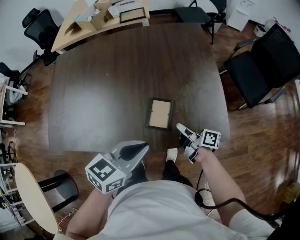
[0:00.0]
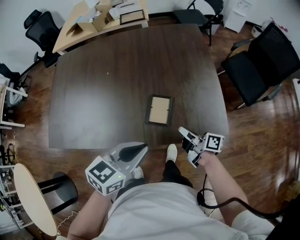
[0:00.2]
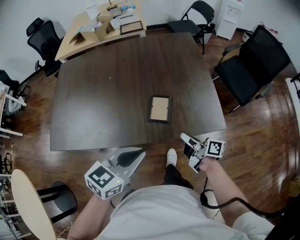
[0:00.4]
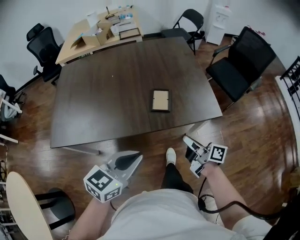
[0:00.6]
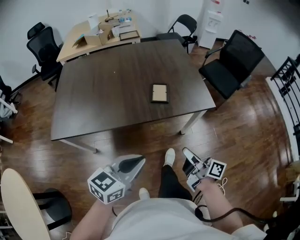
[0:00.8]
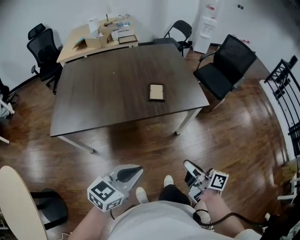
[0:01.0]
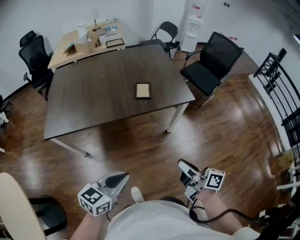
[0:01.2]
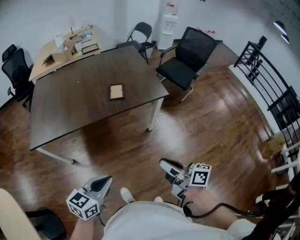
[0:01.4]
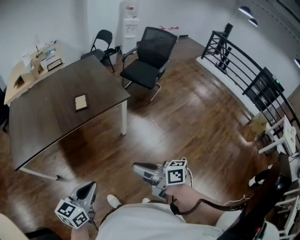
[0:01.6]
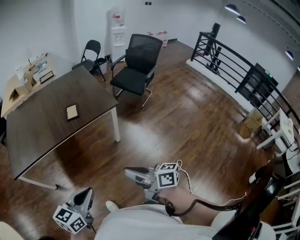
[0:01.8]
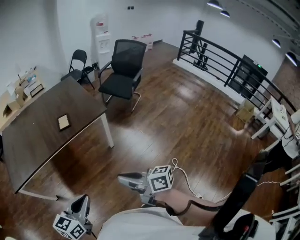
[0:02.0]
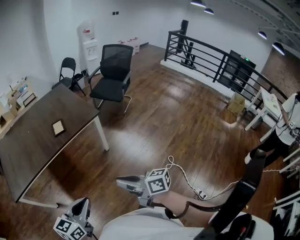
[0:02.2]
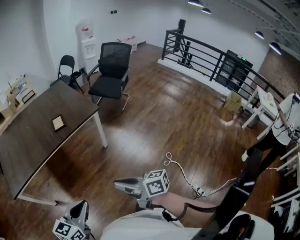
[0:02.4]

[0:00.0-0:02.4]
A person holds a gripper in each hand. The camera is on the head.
0:00.0 to 0:01.2: Both grippers travel together backward, approximately 40 cm. The right gripper changes its angle by about 30 degrees.
0:01.2 to 0:02.4: The left gripper goes about 10 cm to the right and backward, while the right gripper moves backward, about 15 cm.

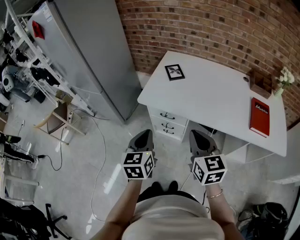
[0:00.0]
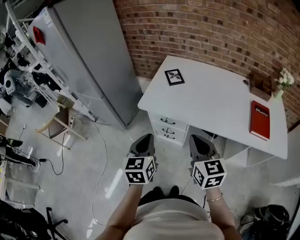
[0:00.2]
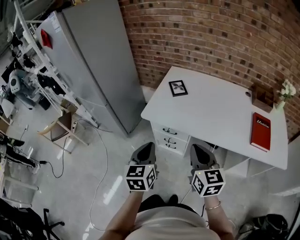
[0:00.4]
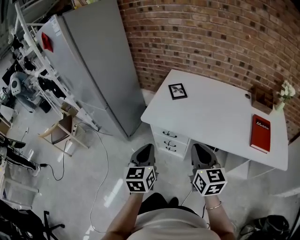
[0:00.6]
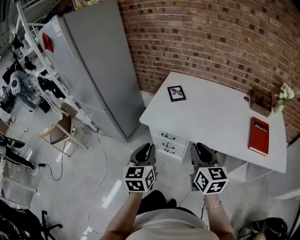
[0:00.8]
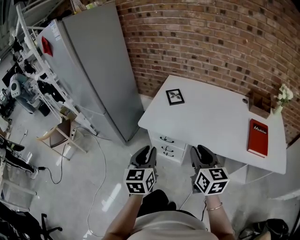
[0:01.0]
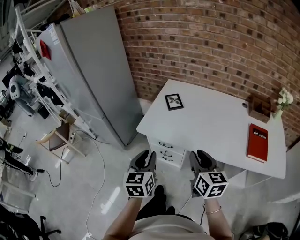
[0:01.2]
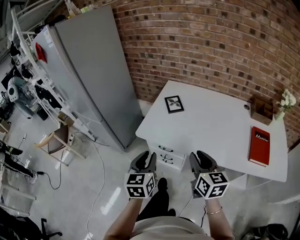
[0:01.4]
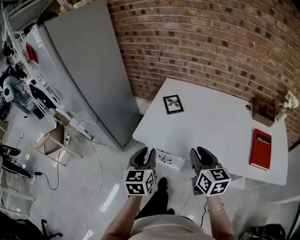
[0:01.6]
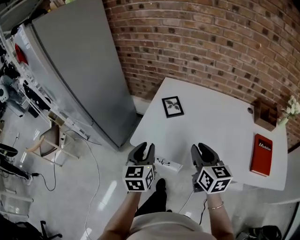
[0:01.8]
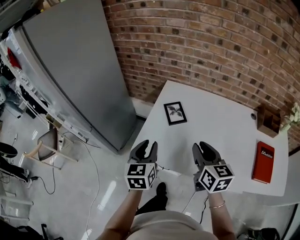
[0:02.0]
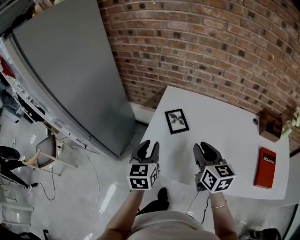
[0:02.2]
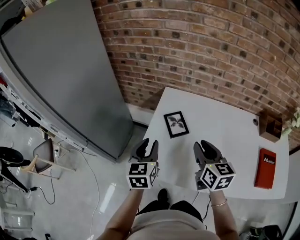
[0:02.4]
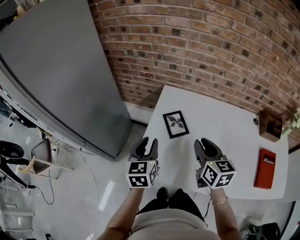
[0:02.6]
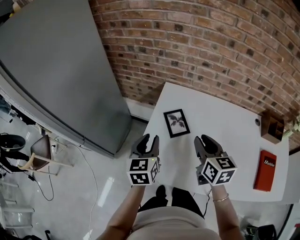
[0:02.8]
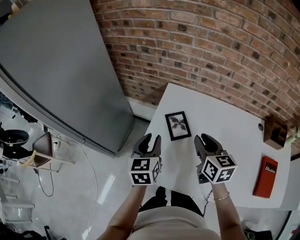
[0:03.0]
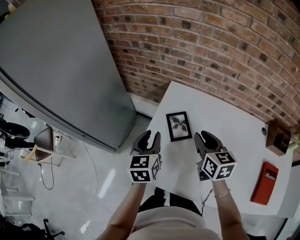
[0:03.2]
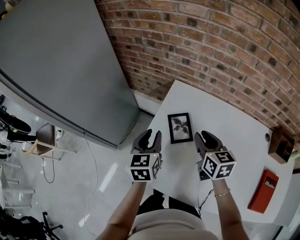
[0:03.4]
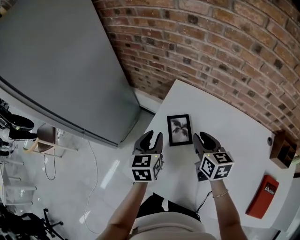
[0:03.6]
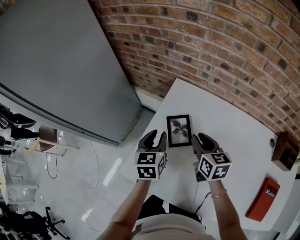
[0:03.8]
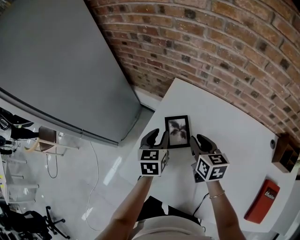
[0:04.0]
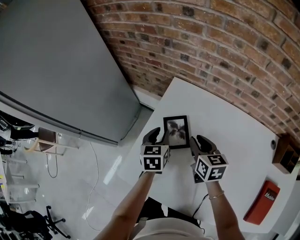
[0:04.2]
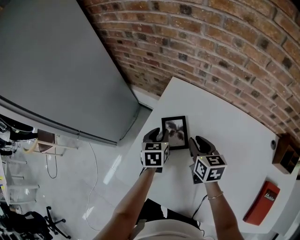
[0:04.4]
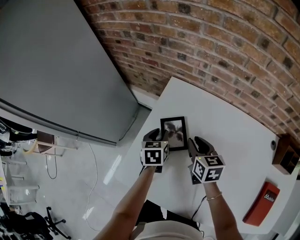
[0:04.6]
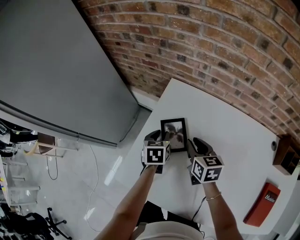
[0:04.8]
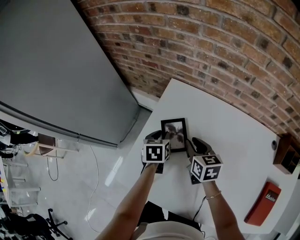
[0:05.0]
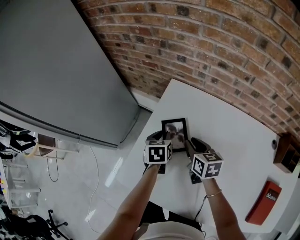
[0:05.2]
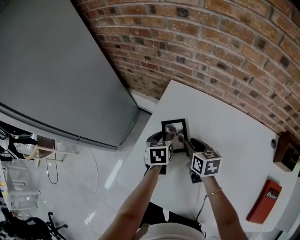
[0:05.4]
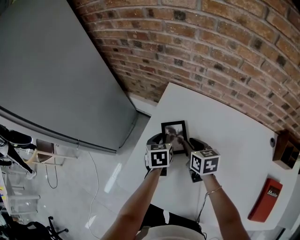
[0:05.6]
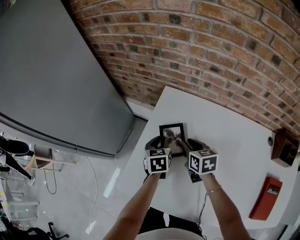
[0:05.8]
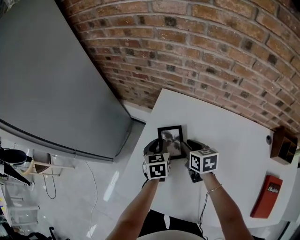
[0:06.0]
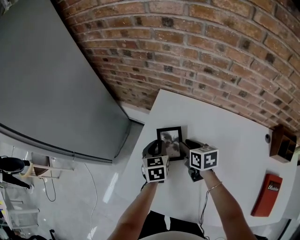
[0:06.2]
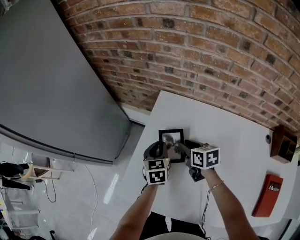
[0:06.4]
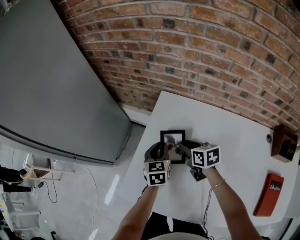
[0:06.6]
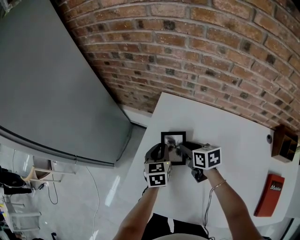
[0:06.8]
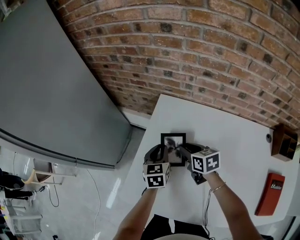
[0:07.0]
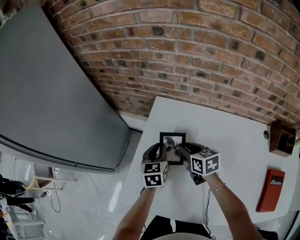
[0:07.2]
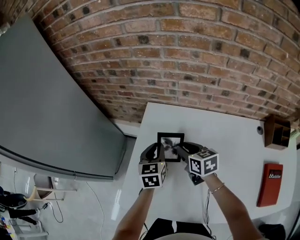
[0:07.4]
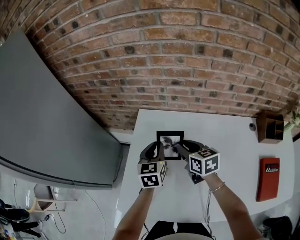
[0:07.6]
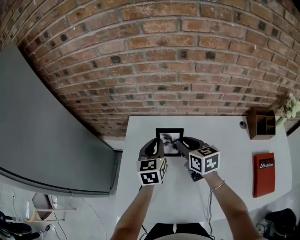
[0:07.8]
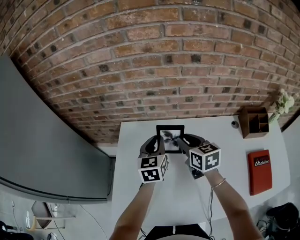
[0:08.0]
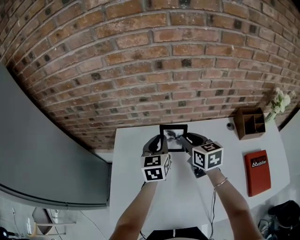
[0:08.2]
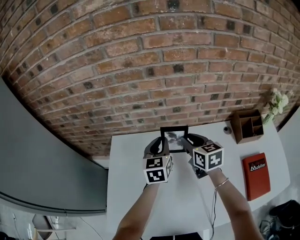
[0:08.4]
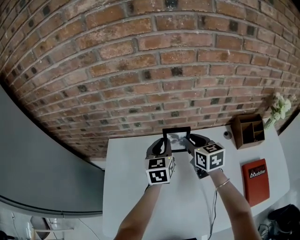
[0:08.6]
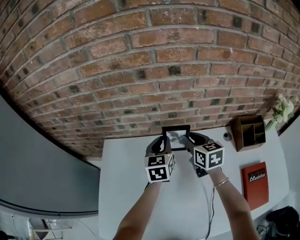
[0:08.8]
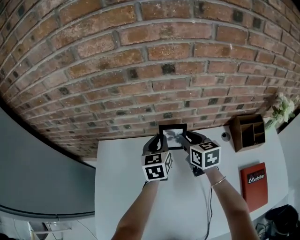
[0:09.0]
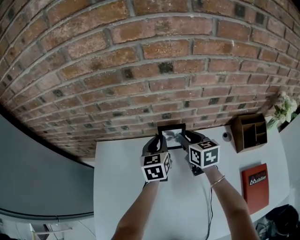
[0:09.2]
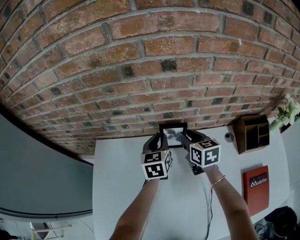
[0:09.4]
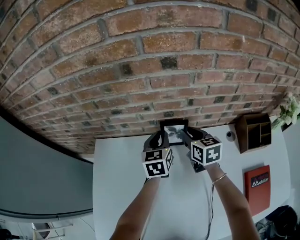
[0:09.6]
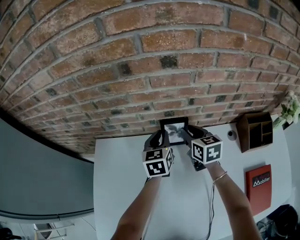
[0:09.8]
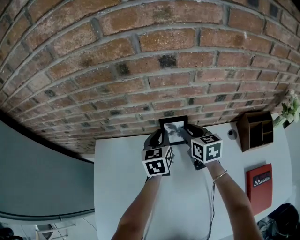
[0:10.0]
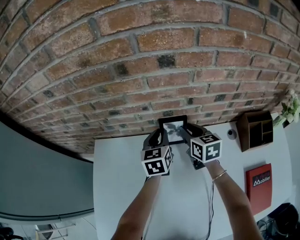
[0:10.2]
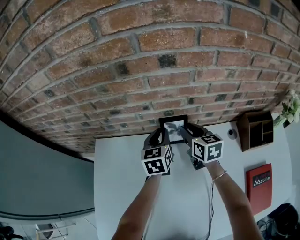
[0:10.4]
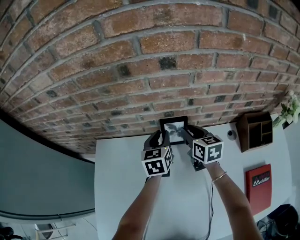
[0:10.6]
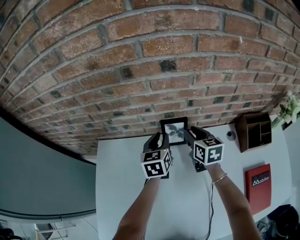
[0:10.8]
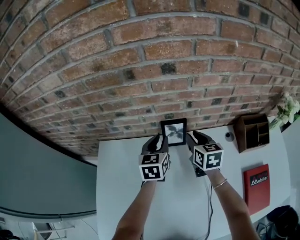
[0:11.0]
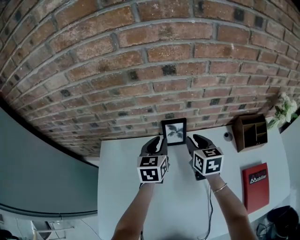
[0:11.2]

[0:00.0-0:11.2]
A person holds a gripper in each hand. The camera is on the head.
0:00.0 to 0:01.6: The right gripper heads forward and to the right, covering about 15 cm, and opens; the left gripper is displaced forward by roughly 10 cm, and opens.
0:01.6 to 0:03.2: Both grippers move forward, approximately 30 cm.
0:03.2 to 0:04.8: The right gripper goes some 15 cm downward and forward. The left gripper moves downward, forward and to the right, roughly 20 cm, and changes its angle by roughly 30 degrees.
0:04.8 to 0:06.4: The grippers make only small movements.
0:06.4 to 0:08.0: The left gripper ends up approximately 20 cm from where it was, and turns by roughly 30 degrees. Meanwhile the right gripper ends up roughly 20 cm from where it was, and swivels about 30 degrees.
0:08.0 to 0:09.6: The right gripper is displaced forward, to the right and downward by roughly 20 cm. Meanwhile the left gripper moves to the right, forward and downward, about 20 cm.
0:09.6 to 0:11.2: The right gripper travels backward by some 5 cm. The left gripper moves roughly 5 cm.

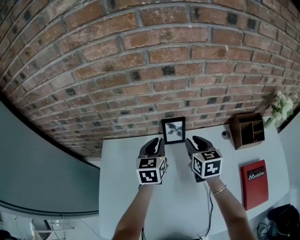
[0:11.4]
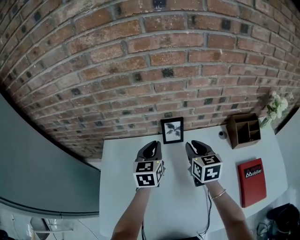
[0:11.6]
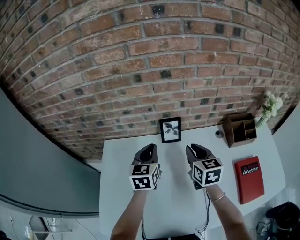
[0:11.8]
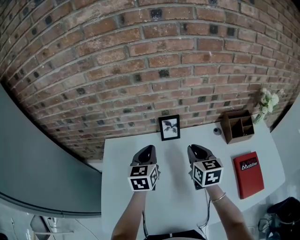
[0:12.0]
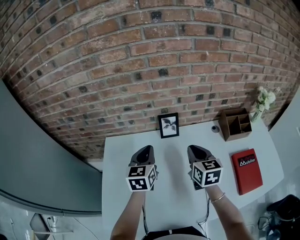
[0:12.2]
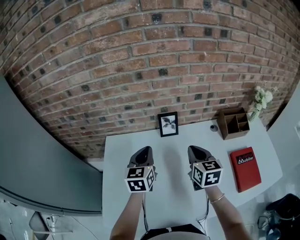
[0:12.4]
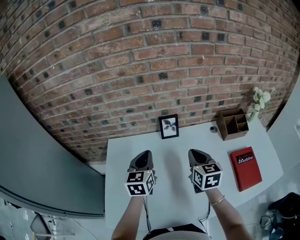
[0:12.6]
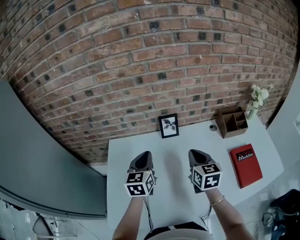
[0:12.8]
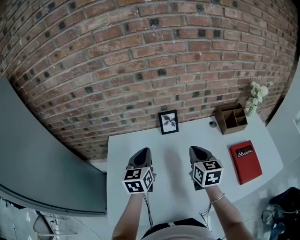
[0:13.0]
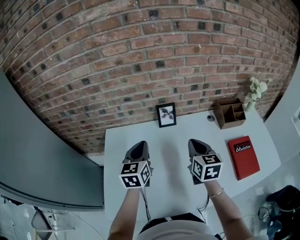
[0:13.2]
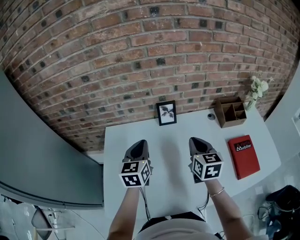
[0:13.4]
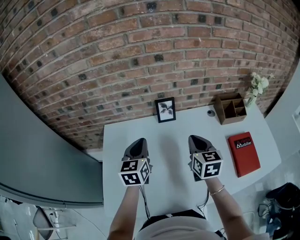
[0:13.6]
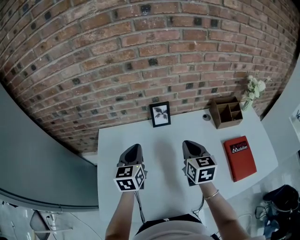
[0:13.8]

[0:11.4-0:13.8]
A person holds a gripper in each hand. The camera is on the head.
0:11.4 to 0:12.6: Both grippers travel together backward, about 15 cm. The right gripper closes its fingers.
0:12.6 to 0:13.8: The grippers move only a little.

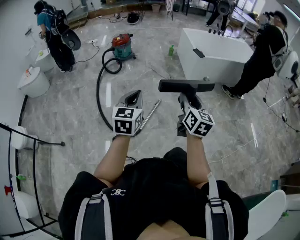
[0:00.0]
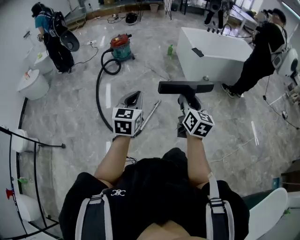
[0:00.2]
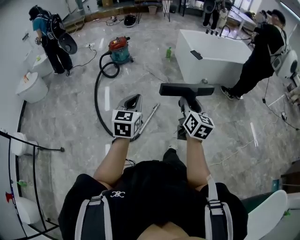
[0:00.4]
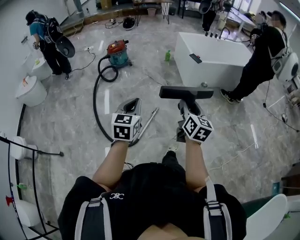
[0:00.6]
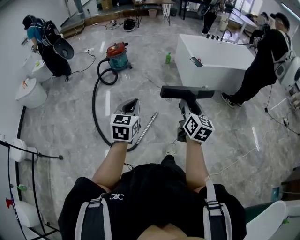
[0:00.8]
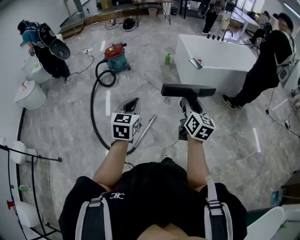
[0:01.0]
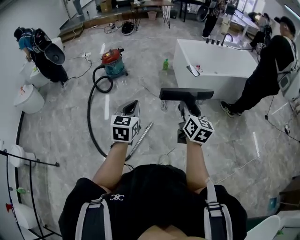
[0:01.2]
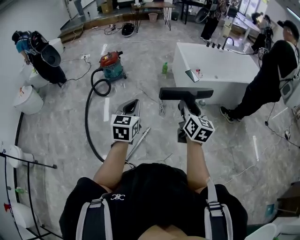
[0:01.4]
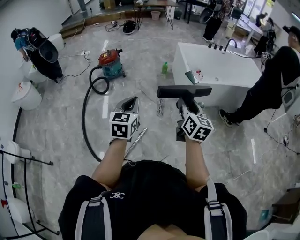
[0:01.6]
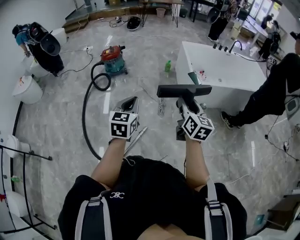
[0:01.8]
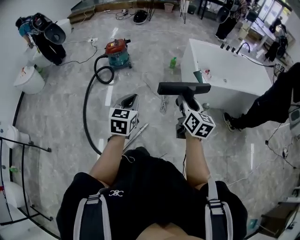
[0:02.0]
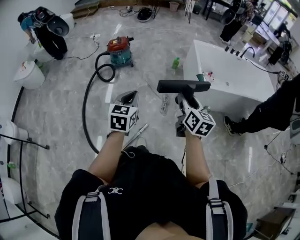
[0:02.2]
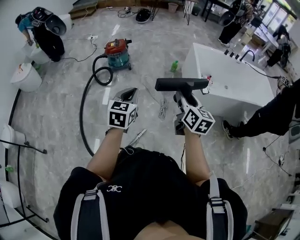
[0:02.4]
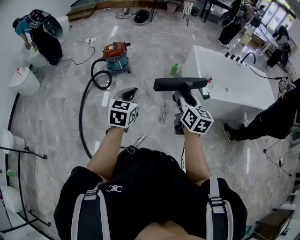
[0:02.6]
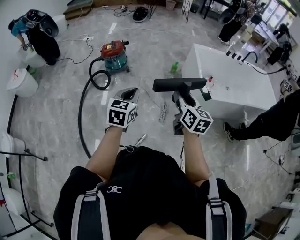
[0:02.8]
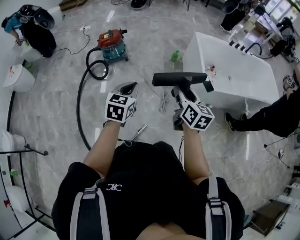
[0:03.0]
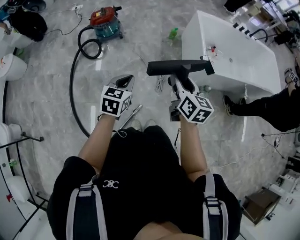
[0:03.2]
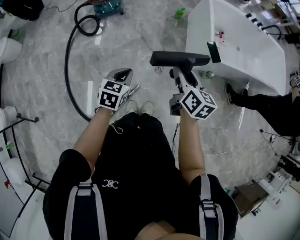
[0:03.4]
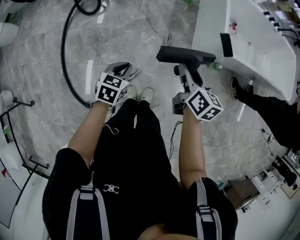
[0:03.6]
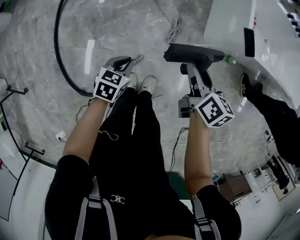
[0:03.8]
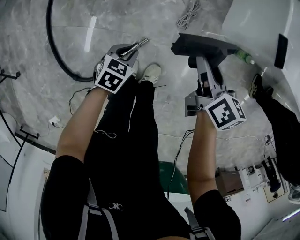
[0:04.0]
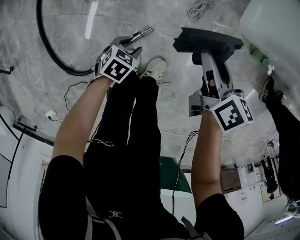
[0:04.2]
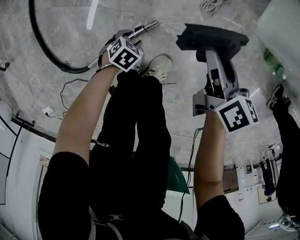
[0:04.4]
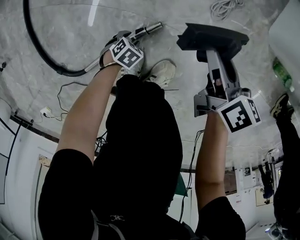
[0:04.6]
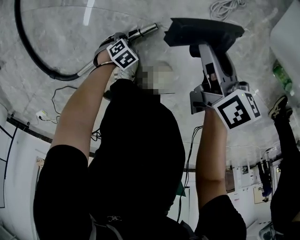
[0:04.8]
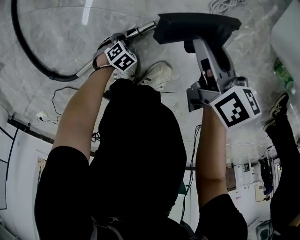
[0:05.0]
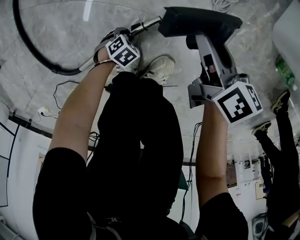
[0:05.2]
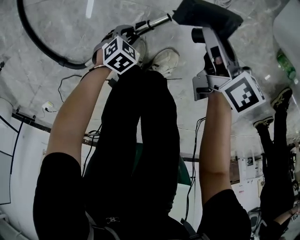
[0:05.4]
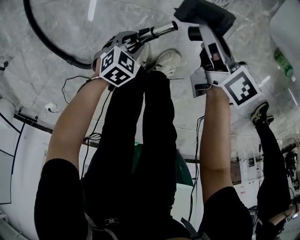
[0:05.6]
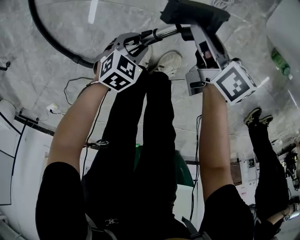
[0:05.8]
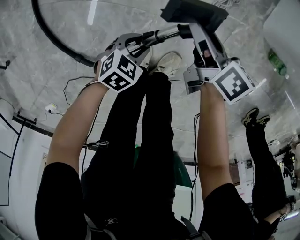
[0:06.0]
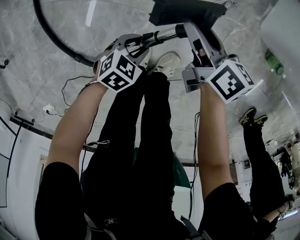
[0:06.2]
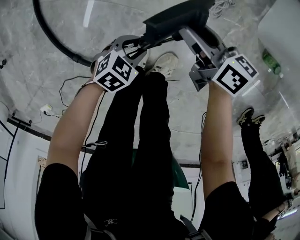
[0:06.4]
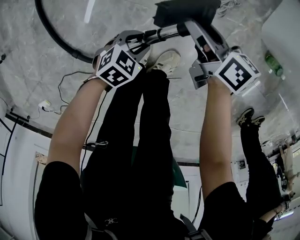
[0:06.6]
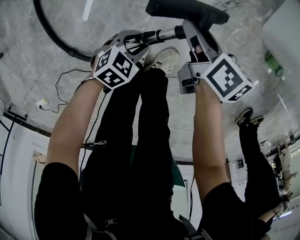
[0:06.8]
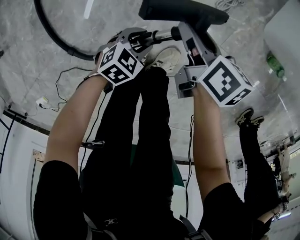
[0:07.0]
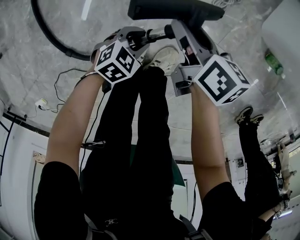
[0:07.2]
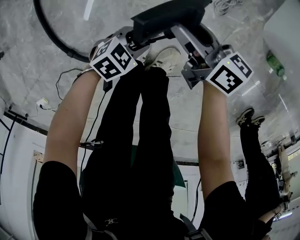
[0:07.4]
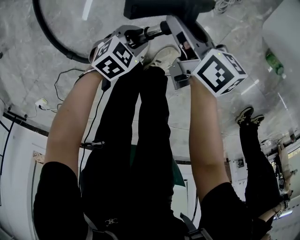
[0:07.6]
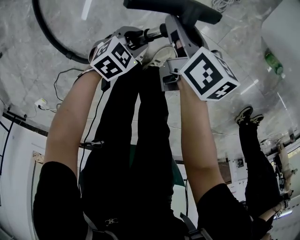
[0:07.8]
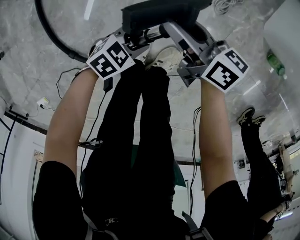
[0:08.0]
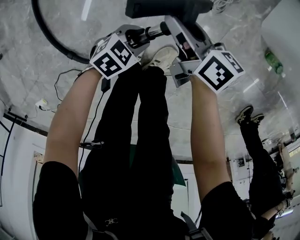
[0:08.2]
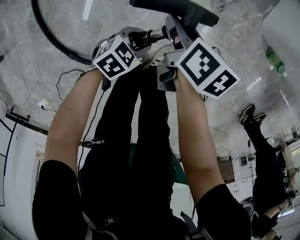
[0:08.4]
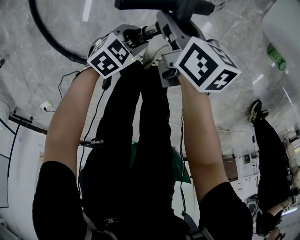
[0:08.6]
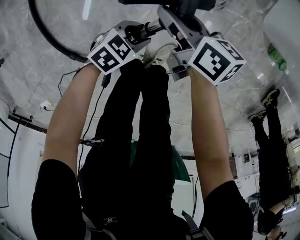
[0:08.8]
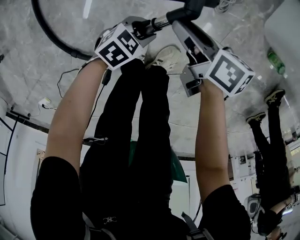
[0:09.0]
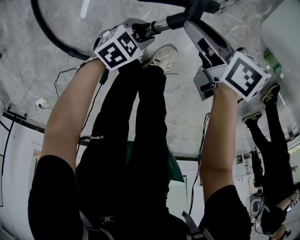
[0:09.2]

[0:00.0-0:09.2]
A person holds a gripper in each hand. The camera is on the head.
0:00.0 to 0:01.6: The two grippers travel together, forward, about 40 cm.
0:01.6 to 0:03.0: Both grippers travel together forward, approximately 30 cm.
0:03.0 to 0:04.6: Both grippers travel together downward, about 90 cm. The right gripper turns by about 40 degrees, while the left gripper angles its fingers downward, by approximately 50 degrees, and opens up.
0:04.6 to 0:06.2: The right gripper changes place by about 15 cm; the left gripper heads upward, covering some 25 cm, and rotates roughly 20 degrees.
0:06.2 to 0:07.6: The right gripper shifts by roughly 5 cm.
